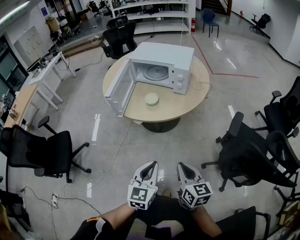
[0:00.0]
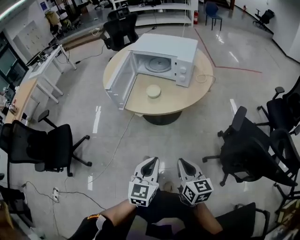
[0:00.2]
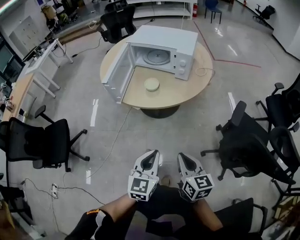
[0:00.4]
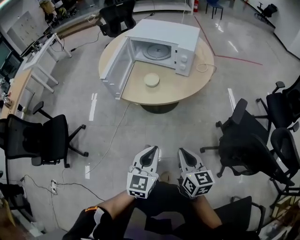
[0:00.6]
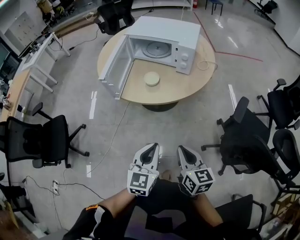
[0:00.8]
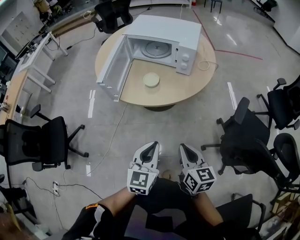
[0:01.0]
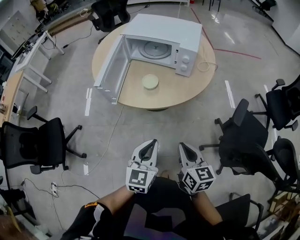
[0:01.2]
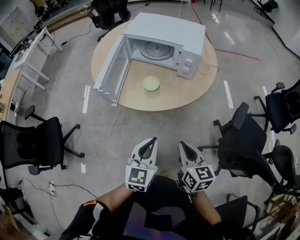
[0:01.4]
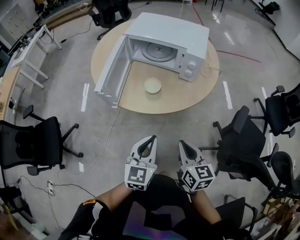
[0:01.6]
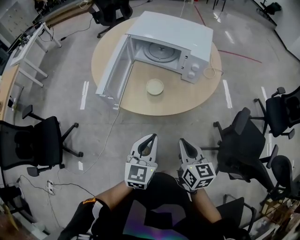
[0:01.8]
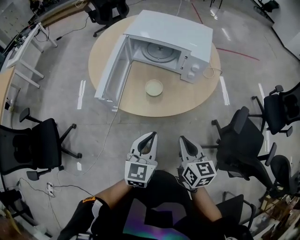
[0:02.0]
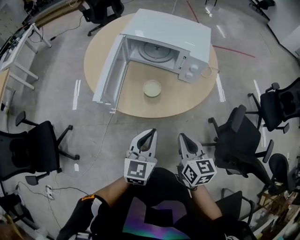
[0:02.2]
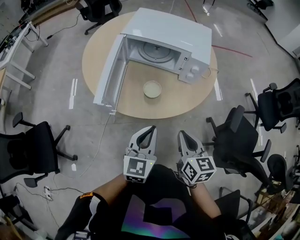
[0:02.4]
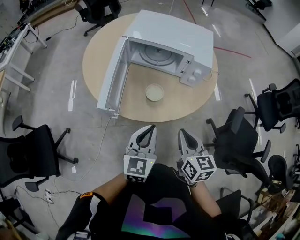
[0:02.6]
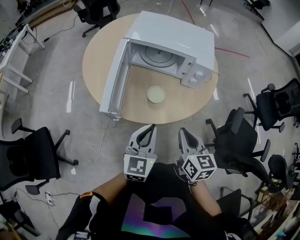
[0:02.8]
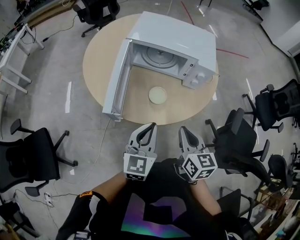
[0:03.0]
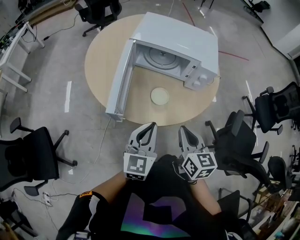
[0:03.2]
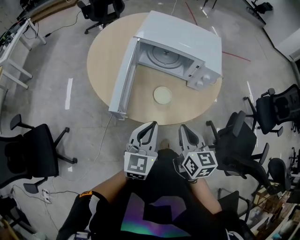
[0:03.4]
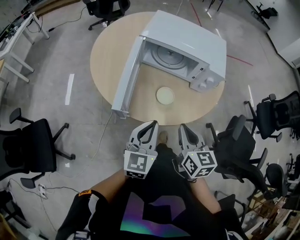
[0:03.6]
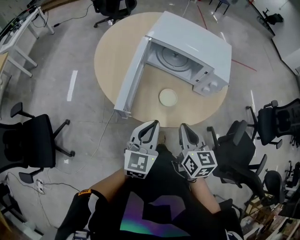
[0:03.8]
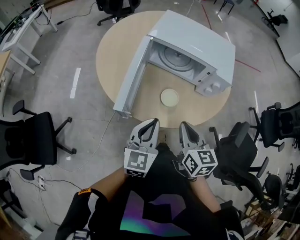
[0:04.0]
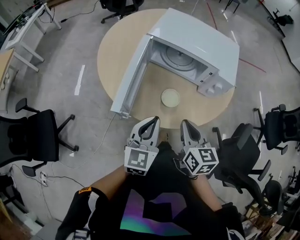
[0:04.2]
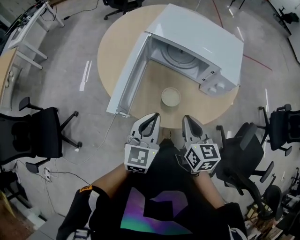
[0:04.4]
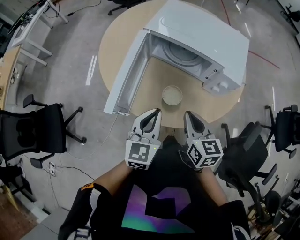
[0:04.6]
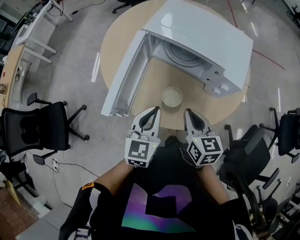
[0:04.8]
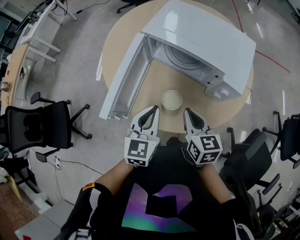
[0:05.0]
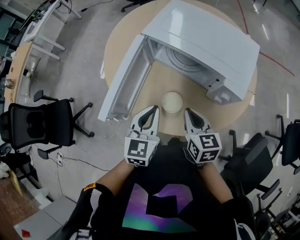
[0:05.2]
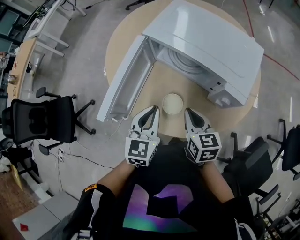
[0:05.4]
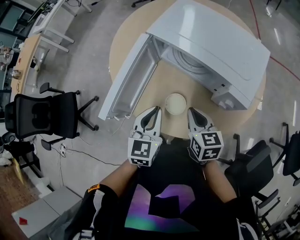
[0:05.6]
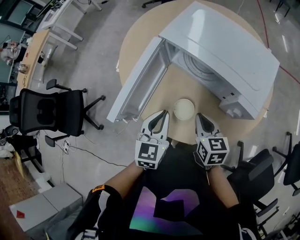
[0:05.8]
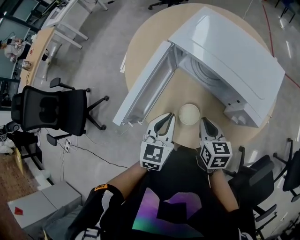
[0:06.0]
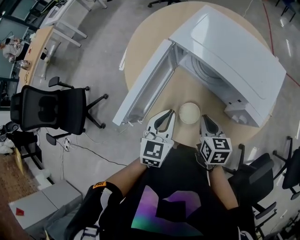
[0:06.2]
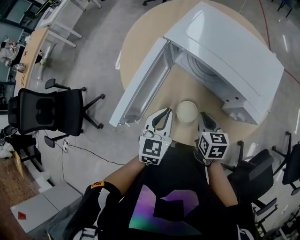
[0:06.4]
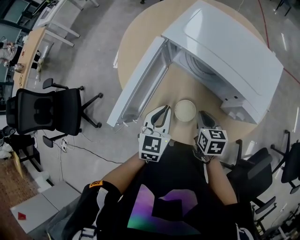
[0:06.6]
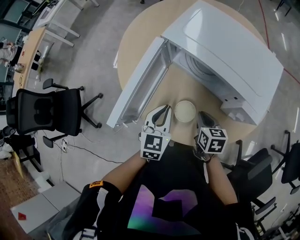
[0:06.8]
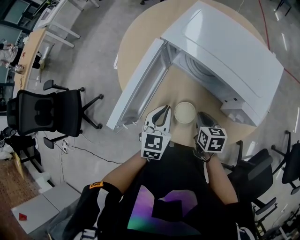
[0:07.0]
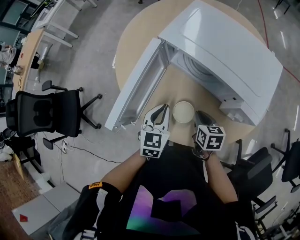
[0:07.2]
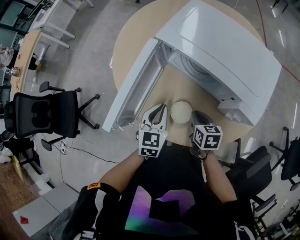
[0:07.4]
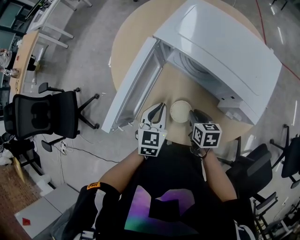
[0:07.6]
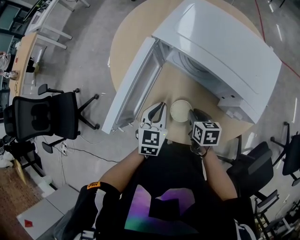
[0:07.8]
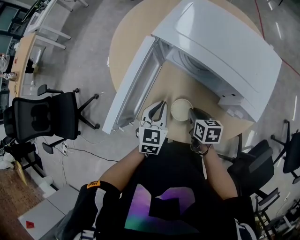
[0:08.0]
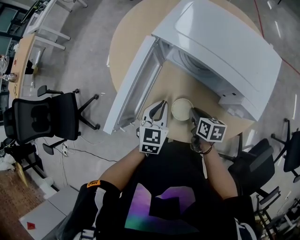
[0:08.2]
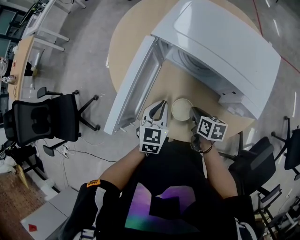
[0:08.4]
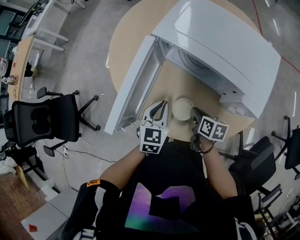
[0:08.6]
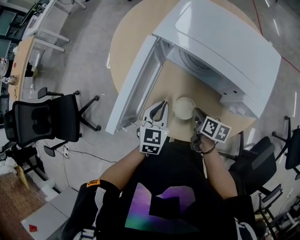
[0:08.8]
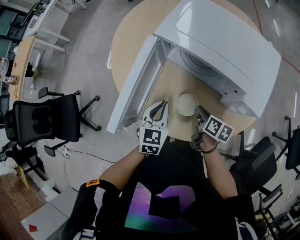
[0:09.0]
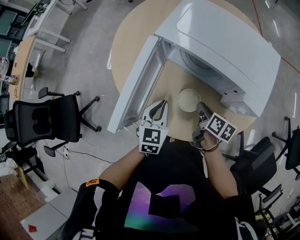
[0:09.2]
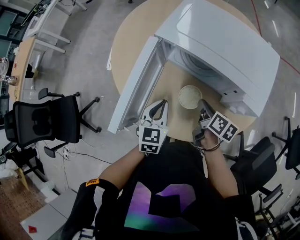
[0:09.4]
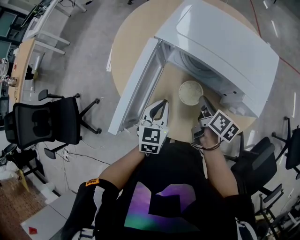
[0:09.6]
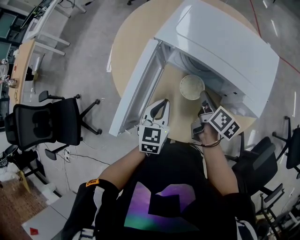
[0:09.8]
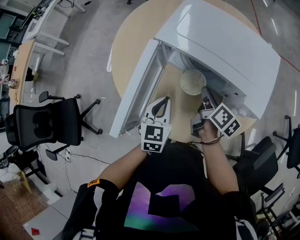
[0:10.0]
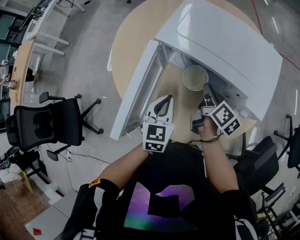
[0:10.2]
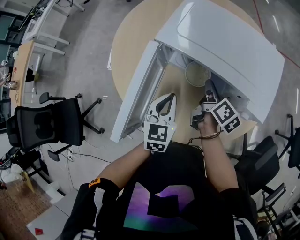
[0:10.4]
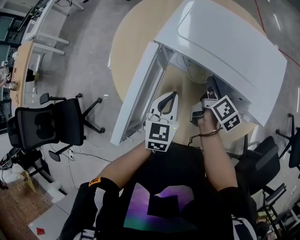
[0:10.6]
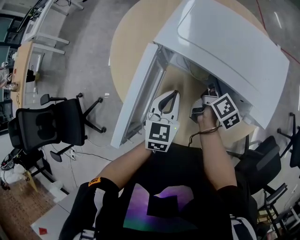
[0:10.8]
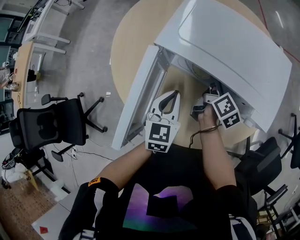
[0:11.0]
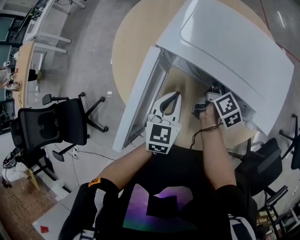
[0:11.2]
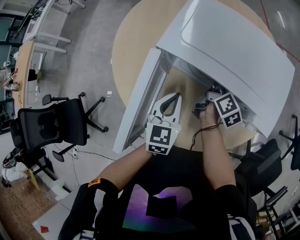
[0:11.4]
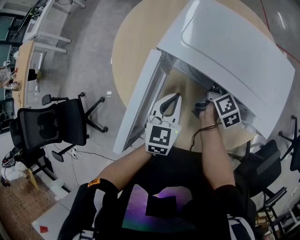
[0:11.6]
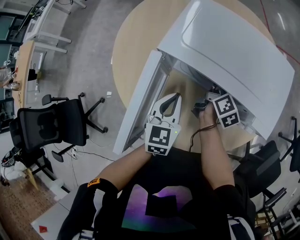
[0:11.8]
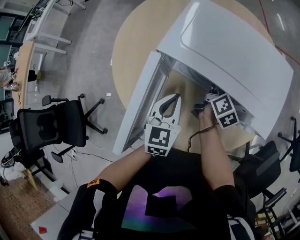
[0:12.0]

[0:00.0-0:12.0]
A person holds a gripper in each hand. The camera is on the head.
0:00.0 to 0:01.6: Both grippers travel together forward, some 20 cm.
0:01.6 to 0:03.0: Both grippers move forward and to the left, approximately 15 cm.
0:03.0 to 0:04.4: Both grippers move forward, about 10 cm.
0:04.4 to 0:06.0: The left gripper moves forward and downward, about 10 cm, while the right gripper shifts approximately 15 cm forward, downward and to the right.
0:06.0 to 0:07.6: Both grippers travel together downward, some 10 cm.
0:07.6 to 0:09.0: The right gripper swivels about 30 degrees.
0:09.0 to 0:10.4: The left gripper travels forward by approximately 5 cm. Meanwhile the right gripper moves forward and upward, about 15 cm, and turns by some 30 degrees.
0:10.4 to 0:12.0: The right gripper shifts roughly 10 cm forward.

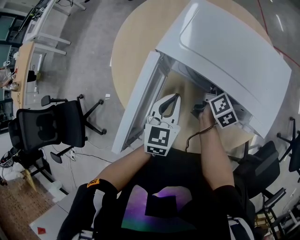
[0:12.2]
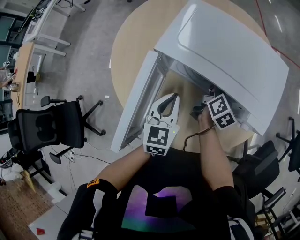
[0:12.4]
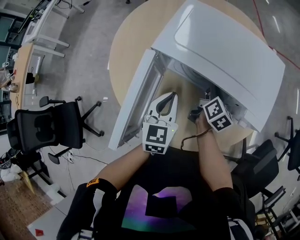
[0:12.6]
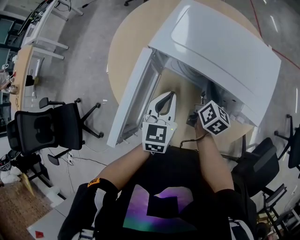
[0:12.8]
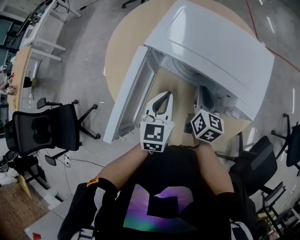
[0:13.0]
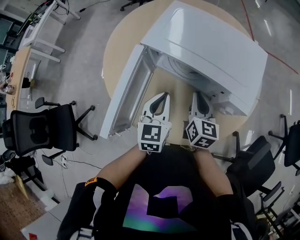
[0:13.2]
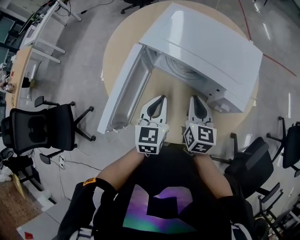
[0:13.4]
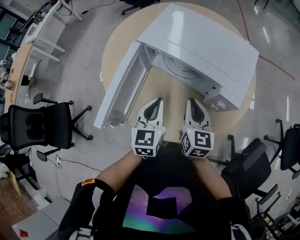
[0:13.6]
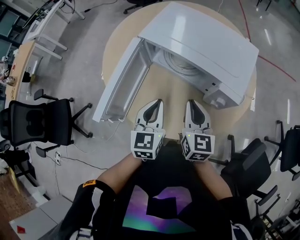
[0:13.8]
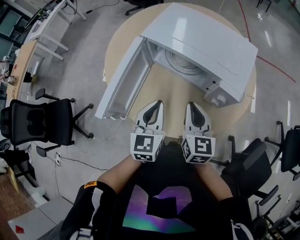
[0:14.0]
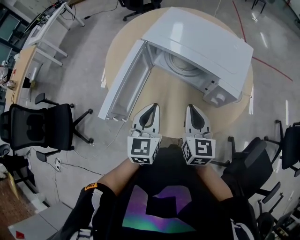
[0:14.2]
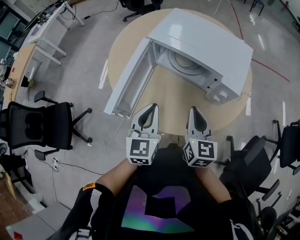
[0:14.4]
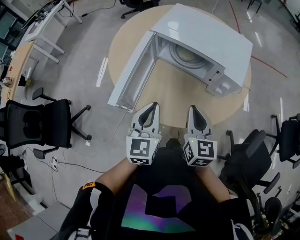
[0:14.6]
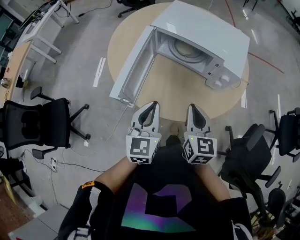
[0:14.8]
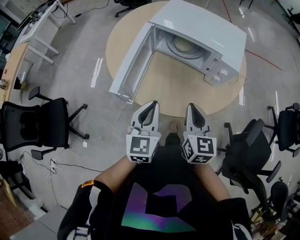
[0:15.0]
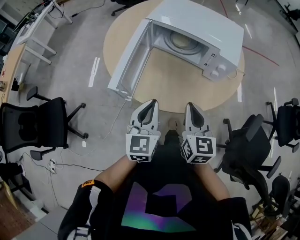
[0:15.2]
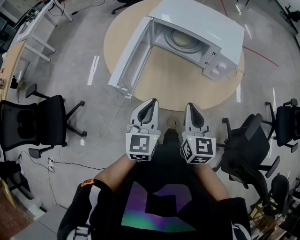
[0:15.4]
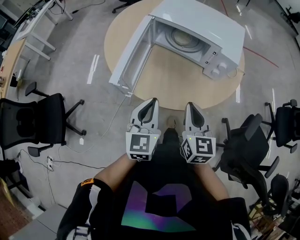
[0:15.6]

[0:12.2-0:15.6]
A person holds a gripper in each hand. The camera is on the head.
0:12.2 to 0:13.8: The right gripper is displaced backward and upward by about 25 cm, and rotates around the line of its fingers by roughly 40 degrees, counterclockwise from behind. The left gripper goes some 15 cm backward and to the right.
0:13.8 to 0:15.6: The left gripper shifts some 20 cm backward and to the left; the right gripper moves backward, some 20 cm.

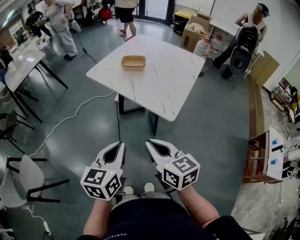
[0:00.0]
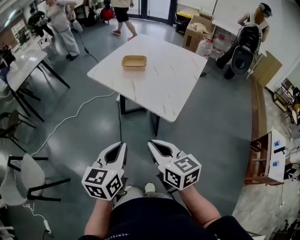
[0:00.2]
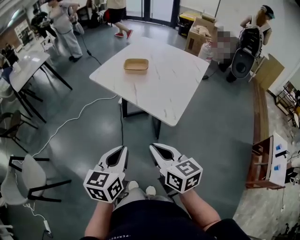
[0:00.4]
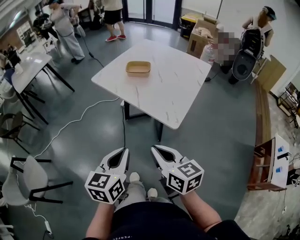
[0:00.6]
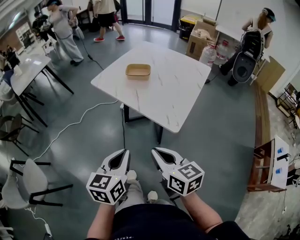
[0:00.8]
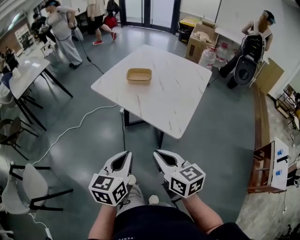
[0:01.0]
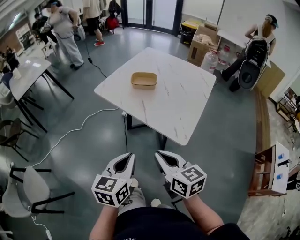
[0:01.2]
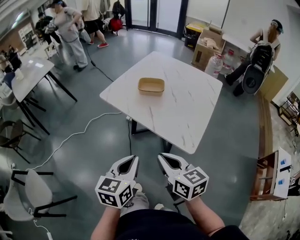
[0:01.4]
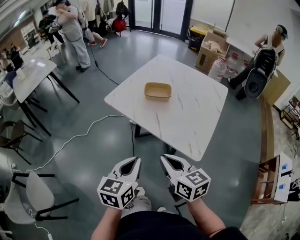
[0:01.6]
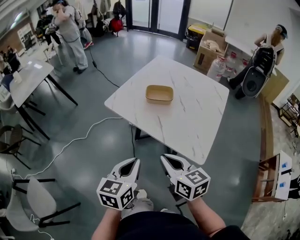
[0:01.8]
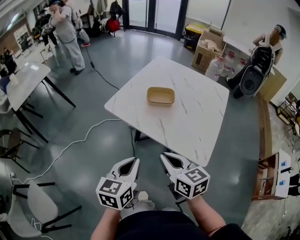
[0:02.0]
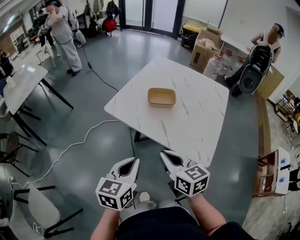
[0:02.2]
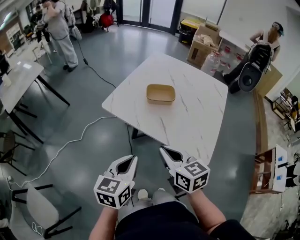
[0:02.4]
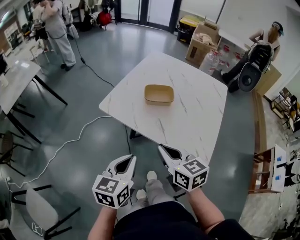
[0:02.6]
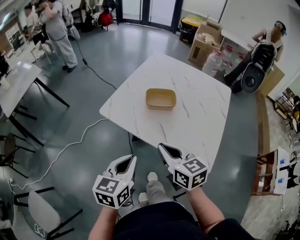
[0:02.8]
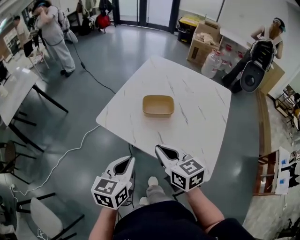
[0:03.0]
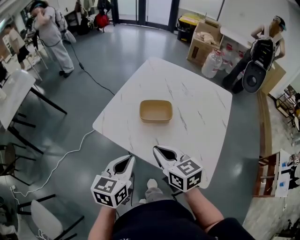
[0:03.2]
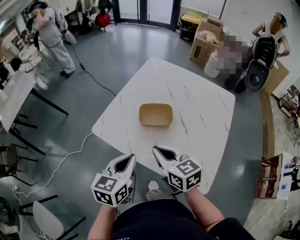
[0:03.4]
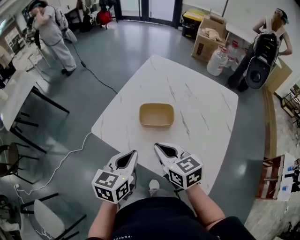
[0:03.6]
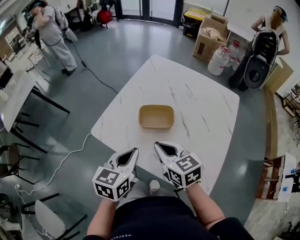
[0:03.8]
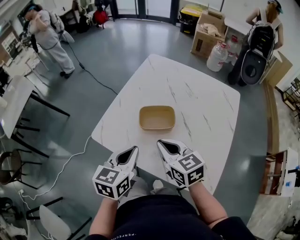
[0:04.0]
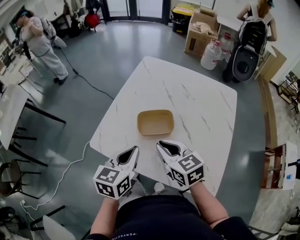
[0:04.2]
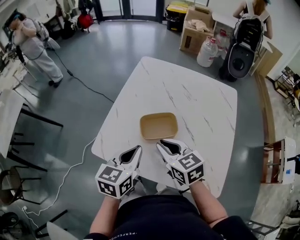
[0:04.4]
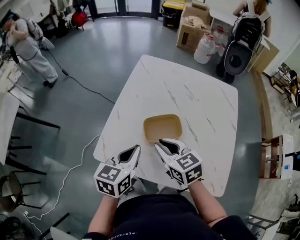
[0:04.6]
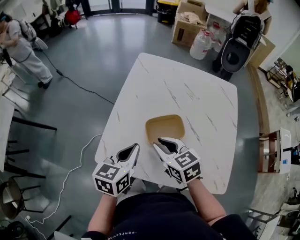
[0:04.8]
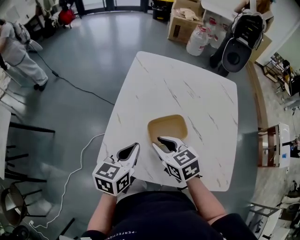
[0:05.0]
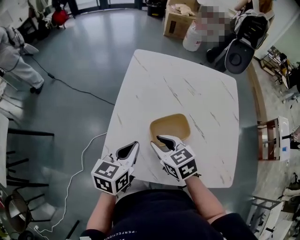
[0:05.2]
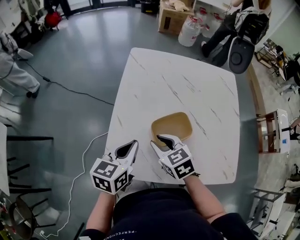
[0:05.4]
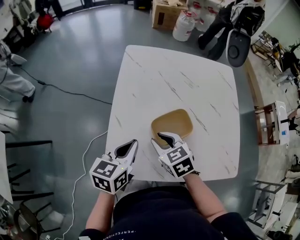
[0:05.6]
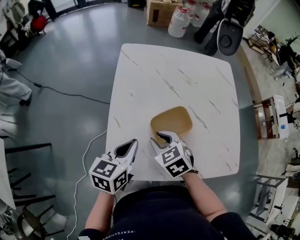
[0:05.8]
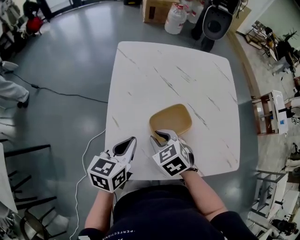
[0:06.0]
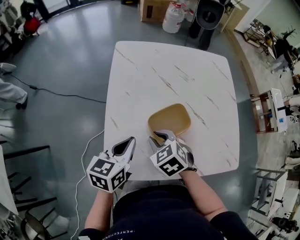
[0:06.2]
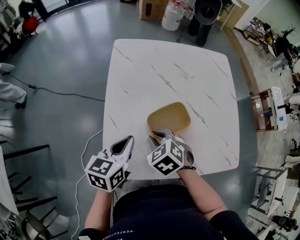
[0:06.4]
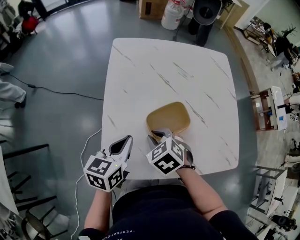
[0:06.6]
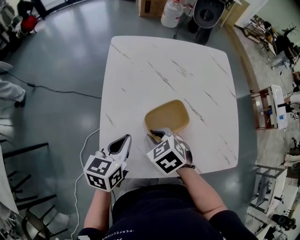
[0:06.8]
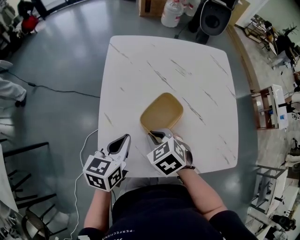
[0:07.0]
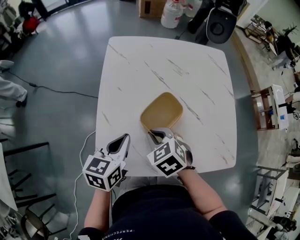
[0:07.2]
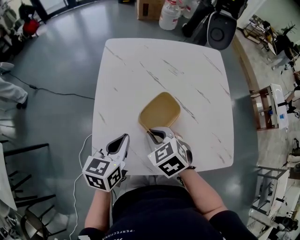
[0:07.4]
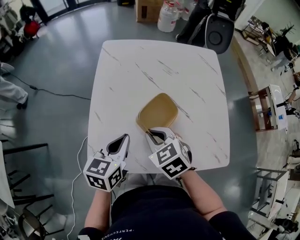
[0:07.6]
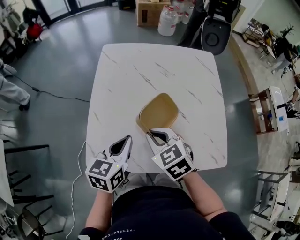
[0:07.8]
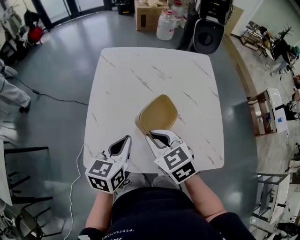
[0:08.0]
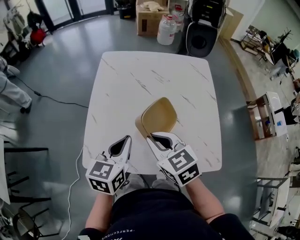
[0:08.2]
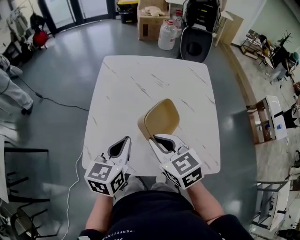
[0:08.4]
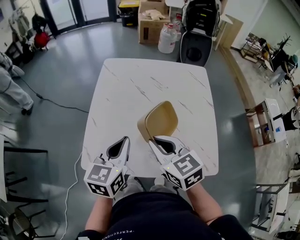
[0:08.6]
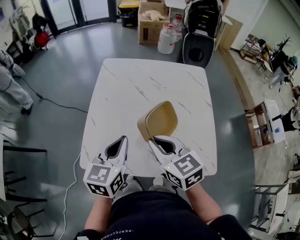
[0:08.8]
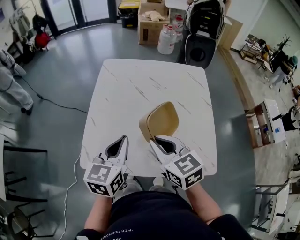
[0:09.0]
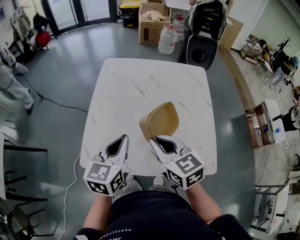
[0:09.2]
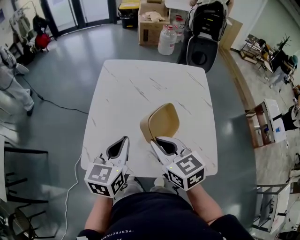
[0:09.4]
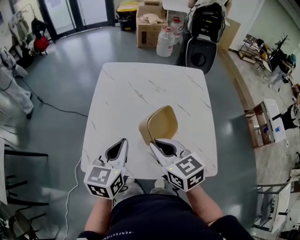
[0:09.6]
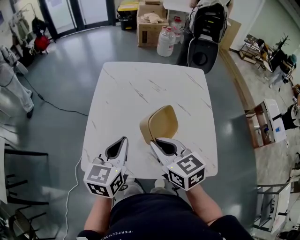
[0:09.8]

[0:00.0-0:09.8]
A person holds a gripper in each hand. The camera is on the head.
0:00.0 to 0:01.4: The two grippers go some 10 cm forward.
0:01.4 to 0:02.8: The left gripper is displaced forward and to the left by approximately 20 cm. The right gripper moves forward, about 20 cm.
0:02.8 to 0:04.2: Both grippers move forward, roughly 20 cm.
0:04.2 to 0:05.6: The left gripper is displaced forward and to the left by roughly 15 cm, and changes its angle by some 20 degrees. The right gripper moves to the left, forward and downward, about 15 cm, and rotates roughly 20 degrees.
0:05.6 to 0:07.0: The right gripper closes up.
0:07.0 to 0:08.4: The left gripper goes approximately 15 cm to the right, upward and backward, while the right gripper goes roughly 20 cm upward, to the right and backward, and changes its angle by roughly 30 degrees.
0:08.4 to 0:09.8: The grippers make only small movements.
